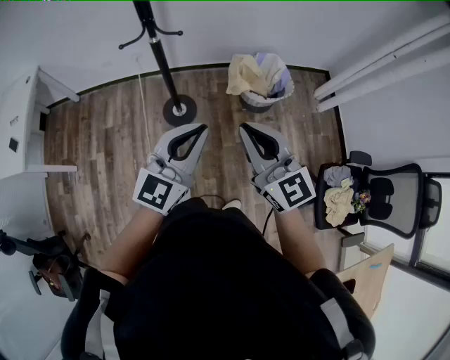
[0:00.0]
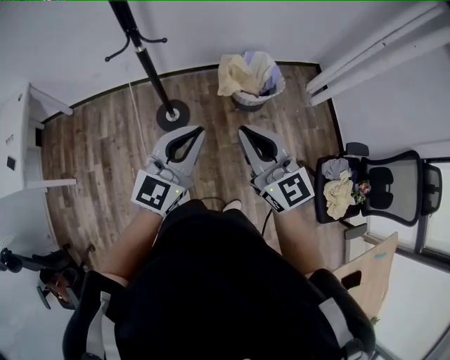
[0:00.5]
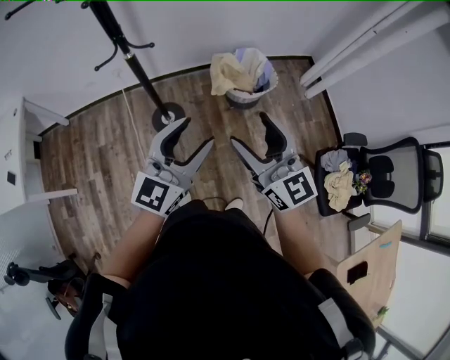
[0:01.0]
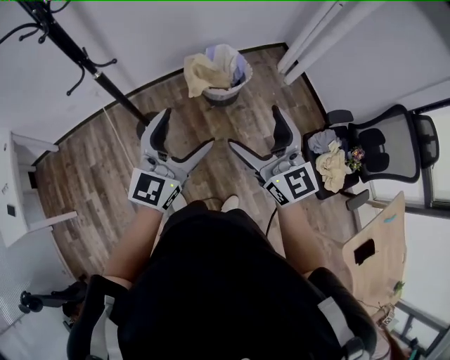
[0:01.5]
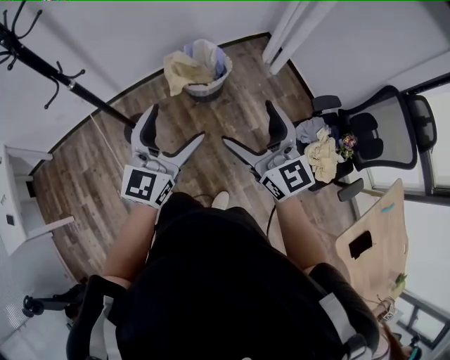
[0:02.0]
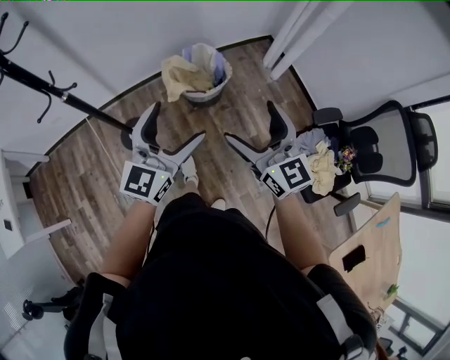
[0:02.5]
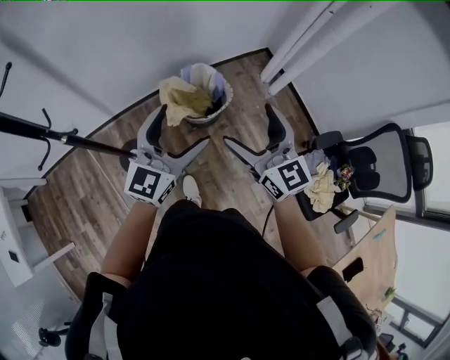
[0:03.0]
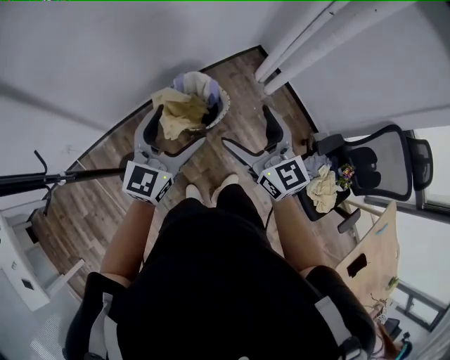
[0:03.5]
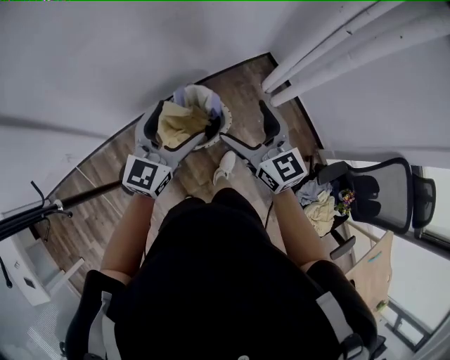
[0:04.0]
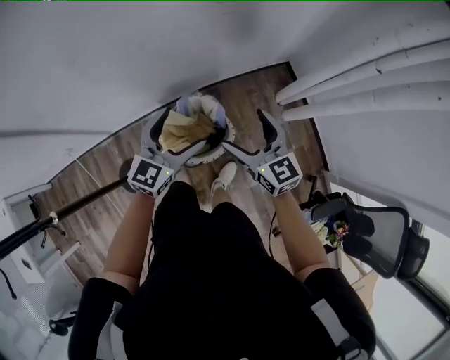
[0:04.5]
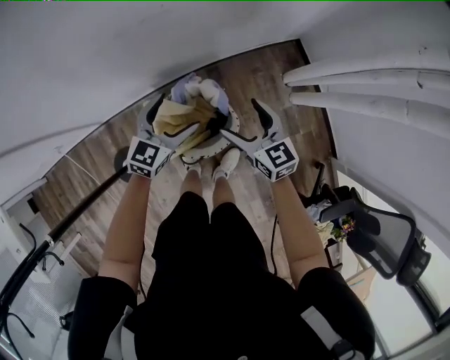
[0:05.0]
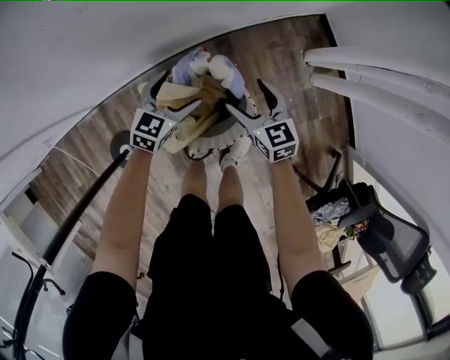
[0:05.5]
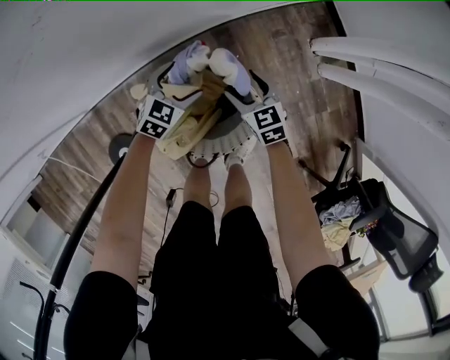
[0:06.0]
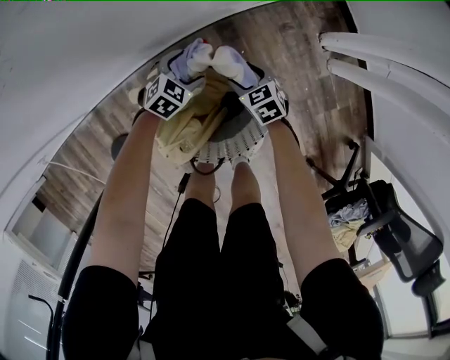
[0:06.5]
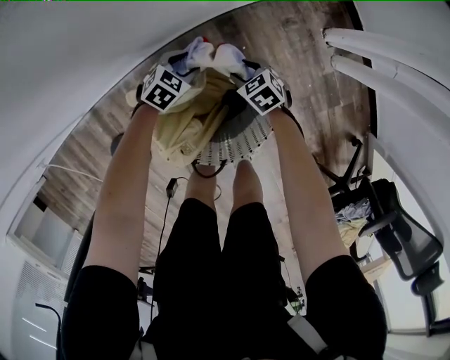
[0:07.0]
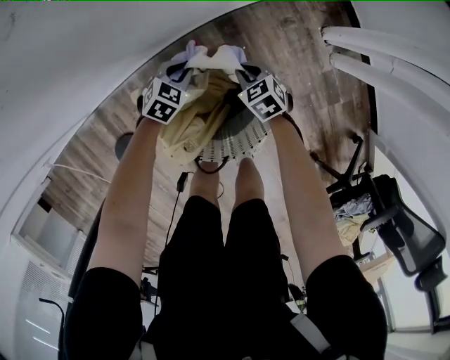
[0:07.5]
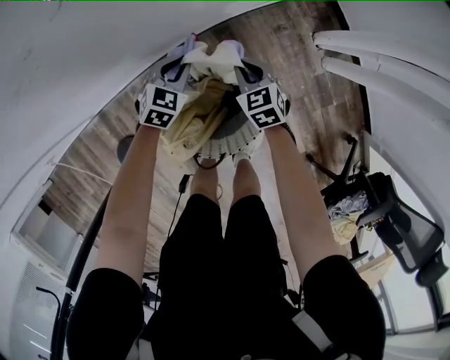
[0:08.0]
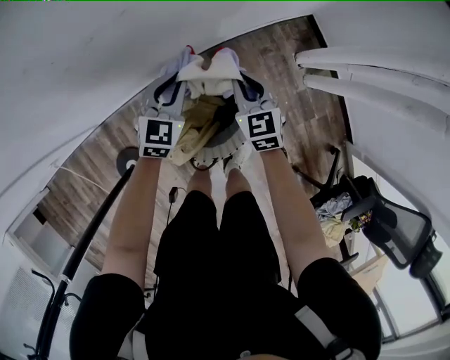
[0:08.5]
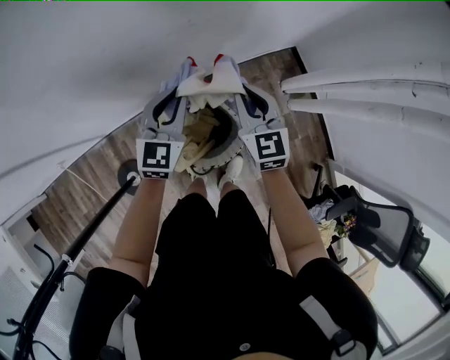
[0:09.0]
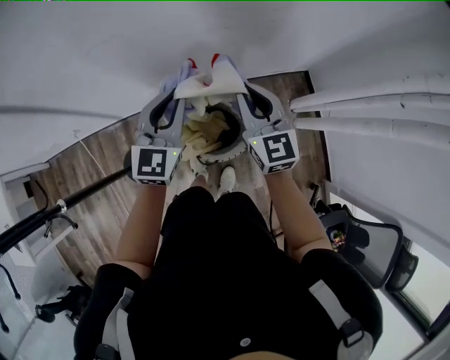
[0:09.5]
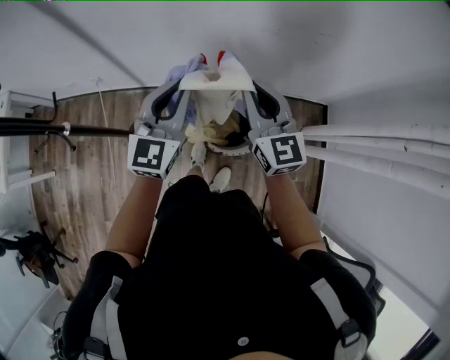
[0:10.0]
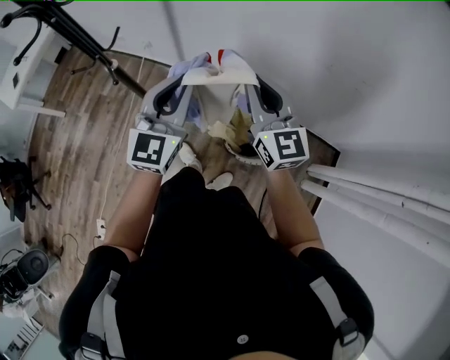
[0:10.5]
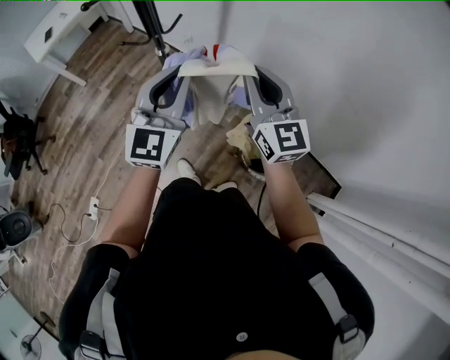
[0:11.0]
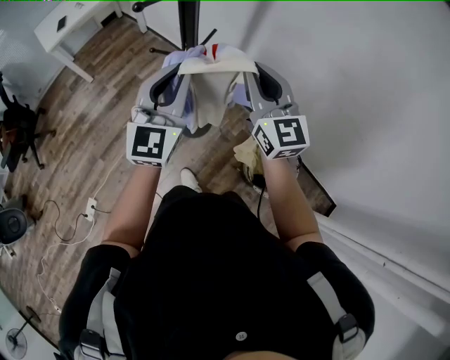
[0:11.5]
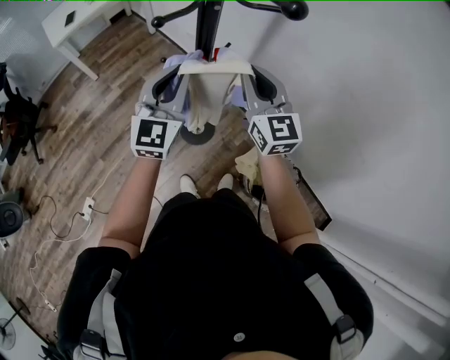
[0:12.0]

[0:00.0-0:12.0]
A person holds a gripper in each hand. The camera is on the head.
0:00.0 to 0:02.0: The two grippers go some 25 cm to the right. The right gripper turns by some 20 degrees, and opens up; the left gripper opens.
0:02.0 to 0:04.0: The pair of grippers is taken forward, about 50 cm.
0:04.0 to 0:06.0: Both grippers move downward and forward, roughly 70 cm. The left gripper tips its fingers downward by approximately 40 degrees; the right gripper points its fingers about 30 degrees further downward.
0:06.0 to 0:08.0: The grippers both shift forward by about 5 cm. The right gripper reaches roughly 15 cm downward, then returns, and closes its fingers. Meanwhile the left gripper travels downward and back again, about 15 cm each way, and closes its fingers.
0:08.0 to 0:10.0: The two grippers go approximately 60 cm upward. The right gripper points its fingers roughly 40 degrees further upward. Meanwhile the left gripper tips its fingers upward by approximately 40 degrees.
0:10.0 to 0:12.0: The pair of grippers is taken roughly 50 cm. The right gripper turns by some 40 degrees. The left gripper swivels roughly 50 degrees.

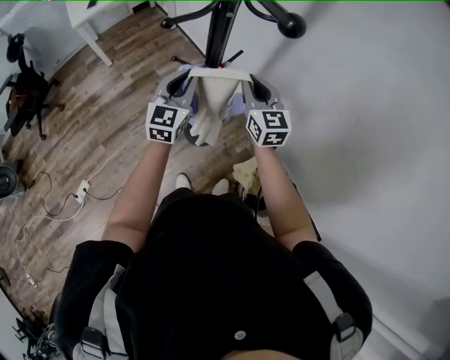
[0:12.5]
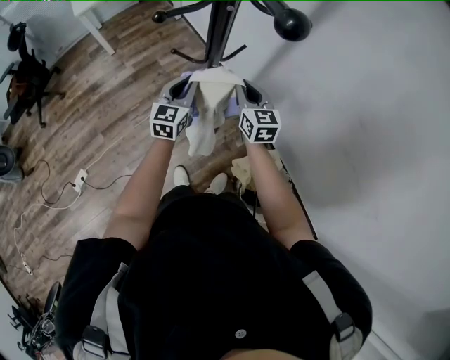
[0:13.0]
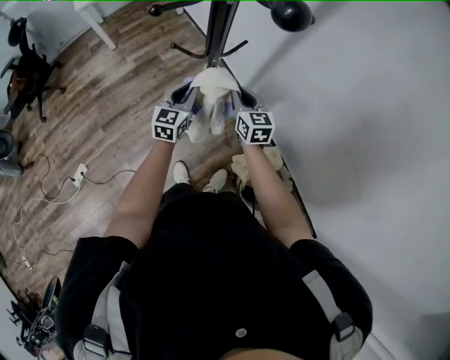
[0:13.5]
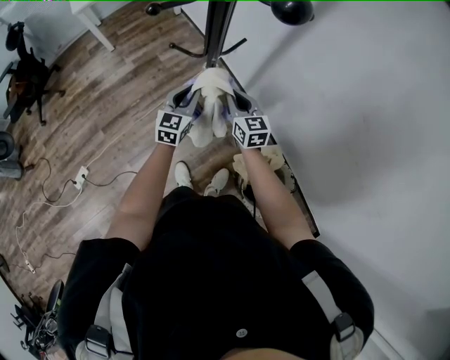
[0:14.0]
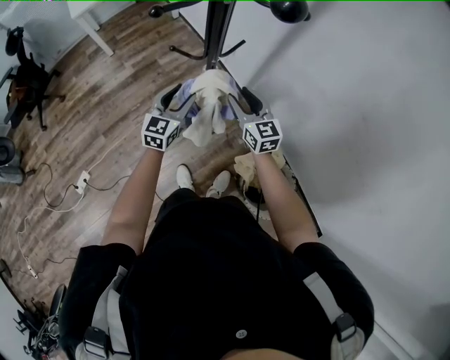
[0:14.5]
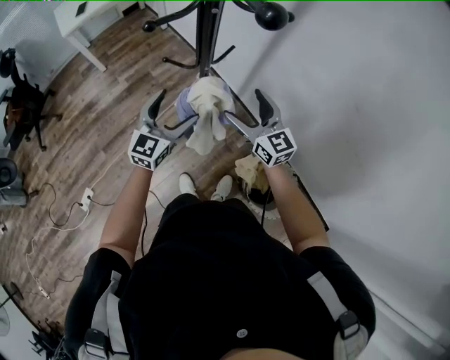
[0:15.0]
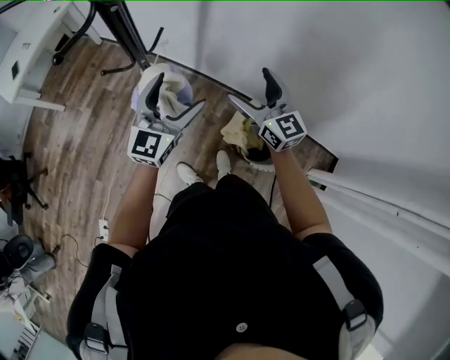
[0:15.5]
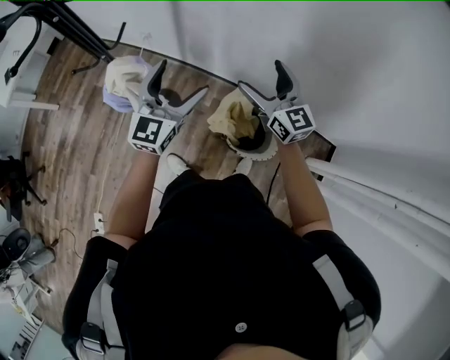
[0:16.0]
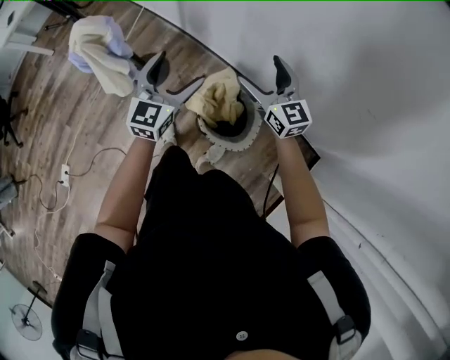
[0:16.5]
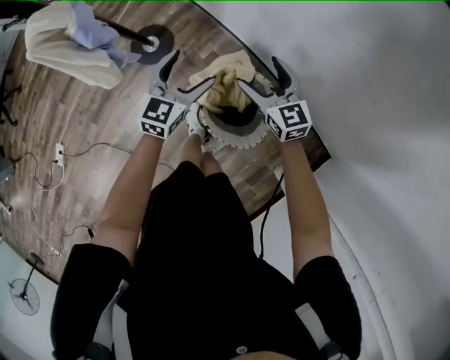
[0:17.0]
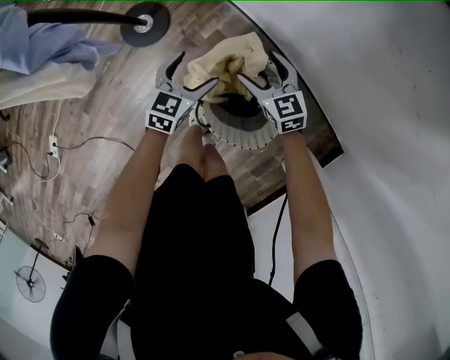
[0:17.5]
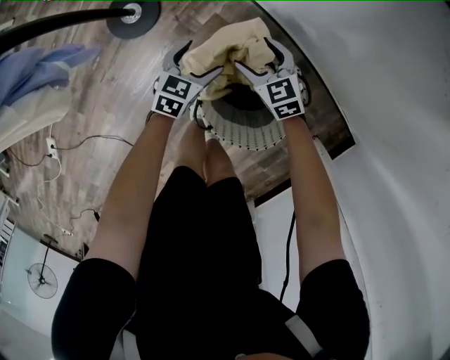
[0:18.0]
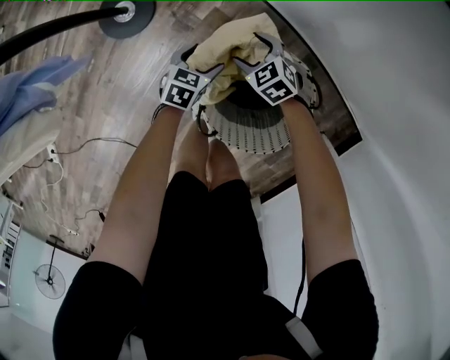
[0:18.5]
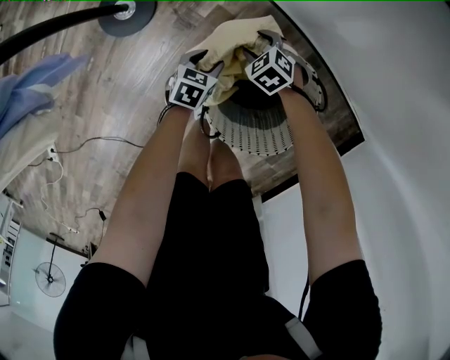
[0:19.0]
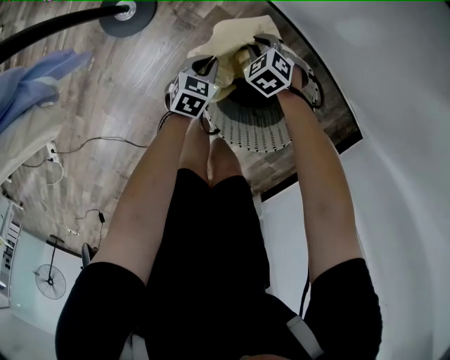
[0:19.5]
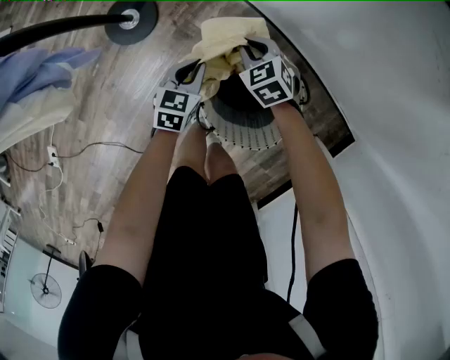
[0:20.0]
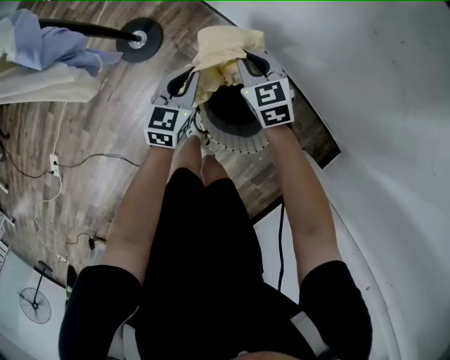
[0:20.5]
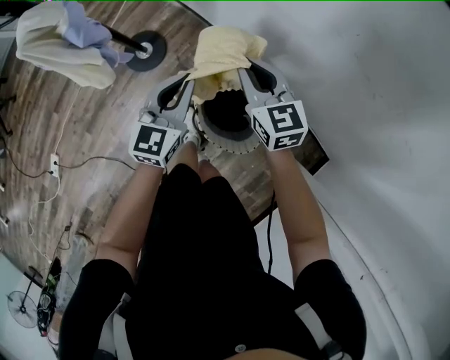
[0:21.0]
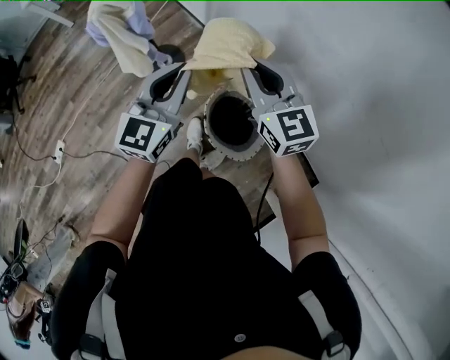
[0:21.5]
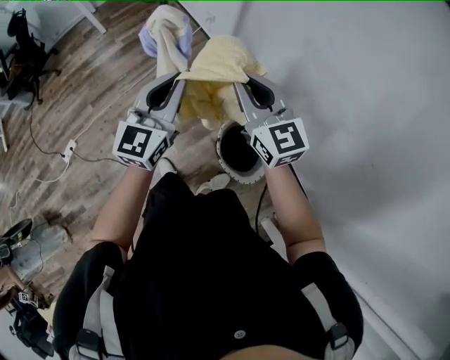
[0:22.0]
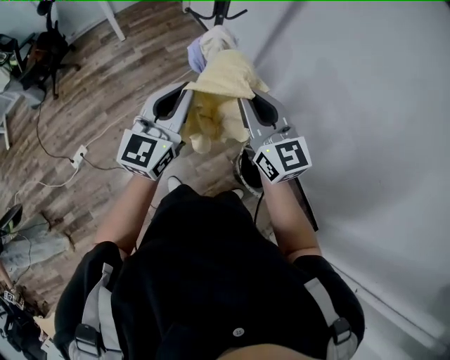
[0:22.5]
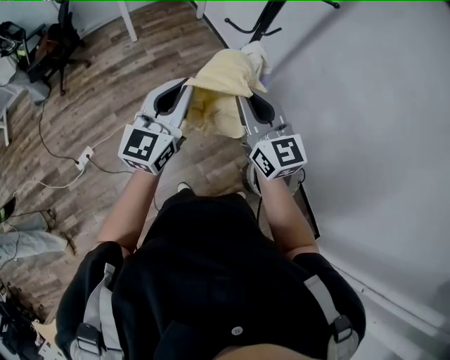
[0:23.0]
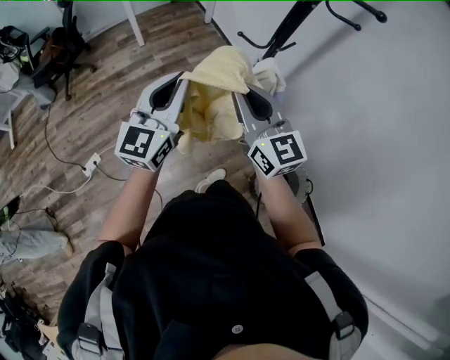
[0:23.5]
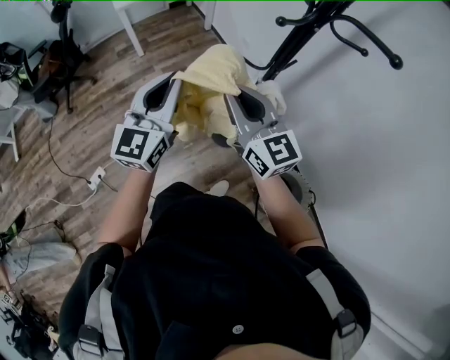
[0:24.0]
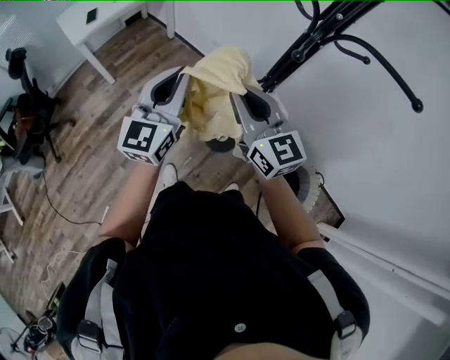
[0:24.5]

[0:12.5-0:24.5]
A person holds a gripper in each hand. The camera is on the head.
0:12.5 to 0:14.5: Both grippers travel together downward, some 10 cm.
0:14.5 to 0:16.5: The two grippers travel together, about 40 cm. The left gripper opens up. Meanwhile the right gripper opens its fingers.
0:16.5 to 0:18.5: Both grippers travel together downward, roughly 60 cm. The right gripper tips its fingers downward by some 40 degrees, while the left gripper angles its fingers downward, by approximately 40 degrees.
0:18.5 to 0:20.5: Both grippers move upward, some 30 cm. The left gripper rotates some 30 degrees, and closes up; the right gripper changes its angle by about 20 degrees, and closes its fingers.
0:20.5 to 0:22.5: The grippers both shift upward and to the left by about 70 cm. The left gripper angles its fingers upward, by about 30 degrees. The right gripper tips its fingers upward by roughly 40 degrees.
0:22.5 to 0:24.5: Both grippers travel together forward and to the left, roughly 40 cm.

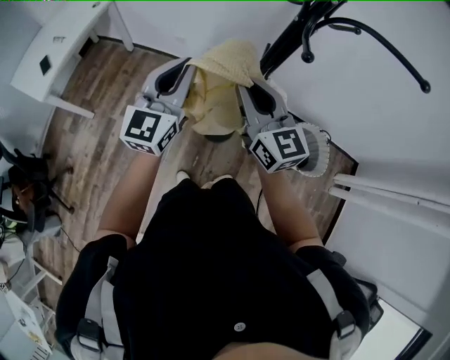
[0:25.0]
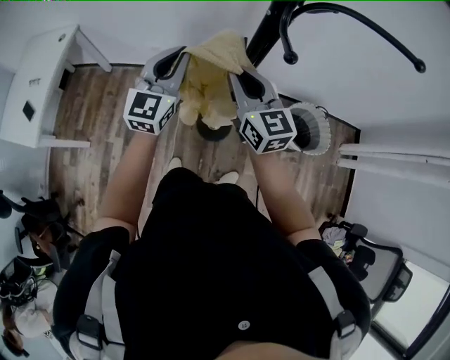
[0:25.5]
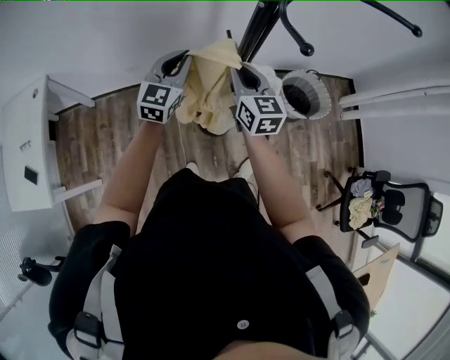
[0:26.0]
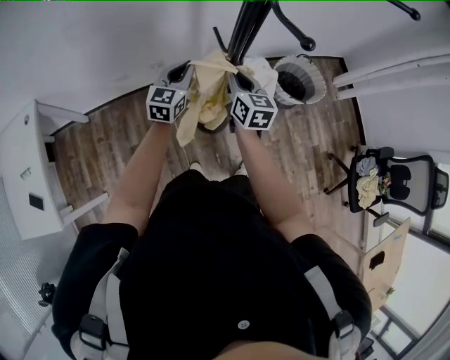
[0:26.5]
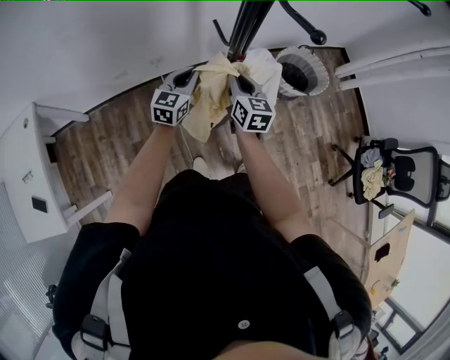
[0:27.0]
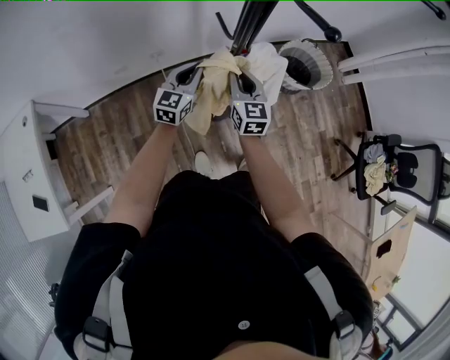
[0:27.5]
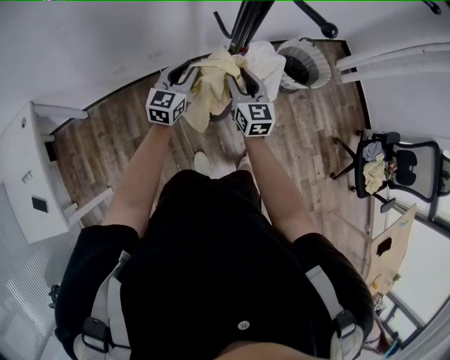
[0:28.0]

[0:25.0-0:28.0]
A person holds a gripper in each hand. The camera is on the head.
0:25.0 to 0:26.5: Both grippers move downward, about 20 cm. The right gripper turns by approximately 60 degrees; the left gripper rotates roughly 40 degrees.
0:26.5 to 0:28.0: The left gripper moves roughly 5 cm. Meanwhile the right gripper is displaced downward by approximately 5 cm.
